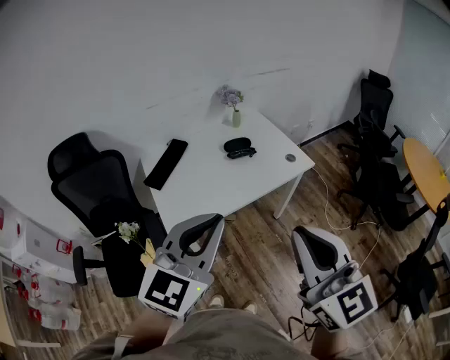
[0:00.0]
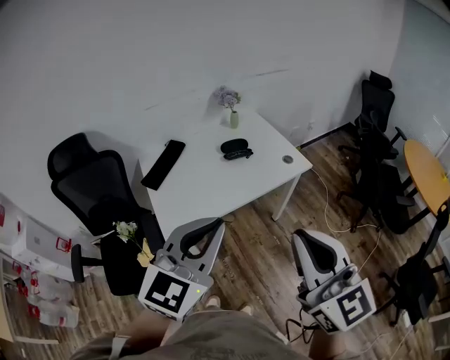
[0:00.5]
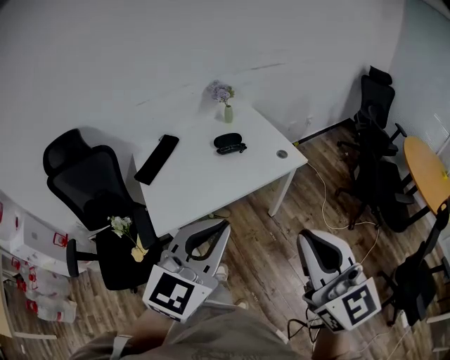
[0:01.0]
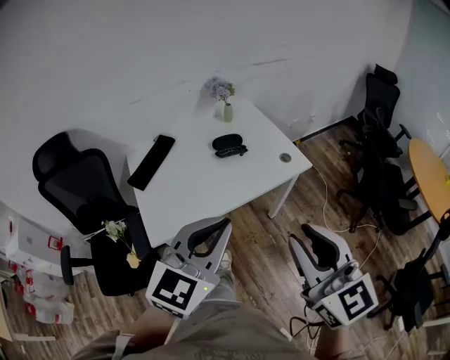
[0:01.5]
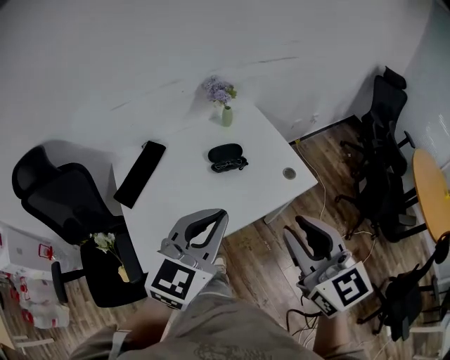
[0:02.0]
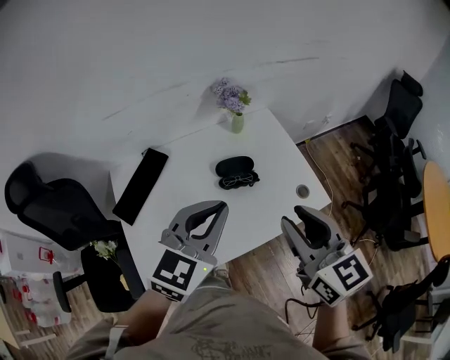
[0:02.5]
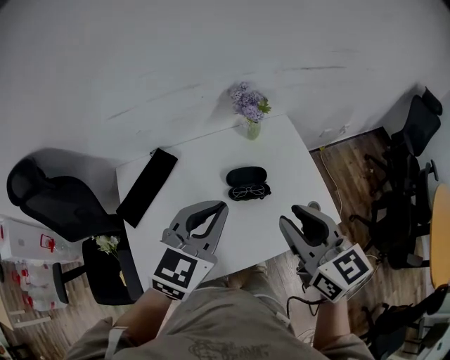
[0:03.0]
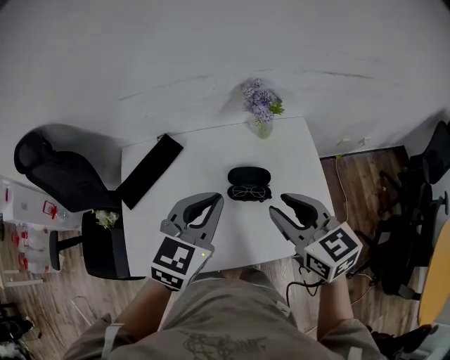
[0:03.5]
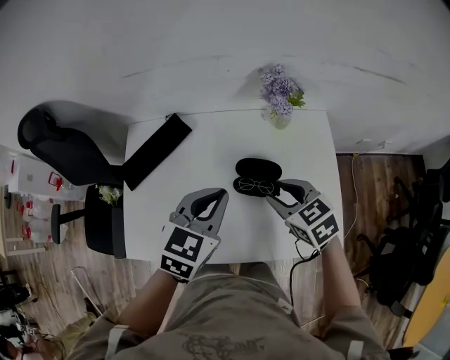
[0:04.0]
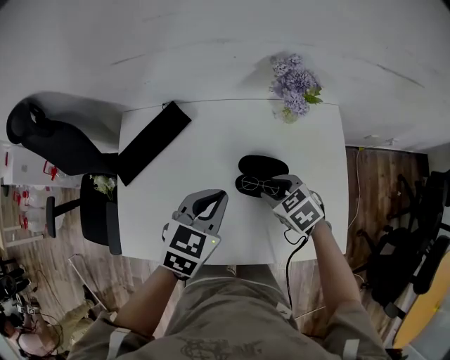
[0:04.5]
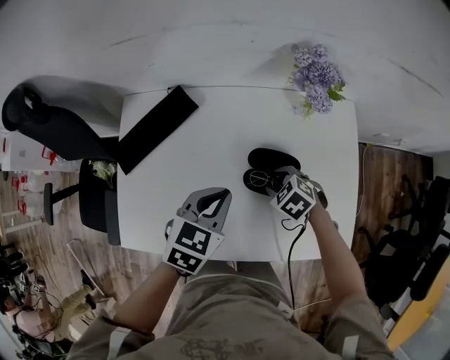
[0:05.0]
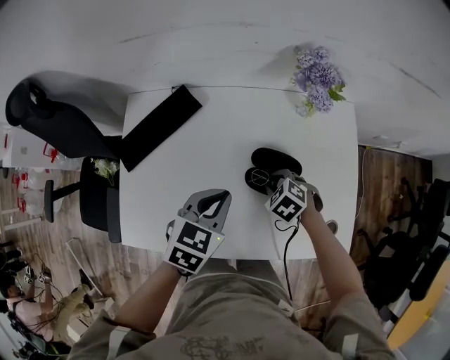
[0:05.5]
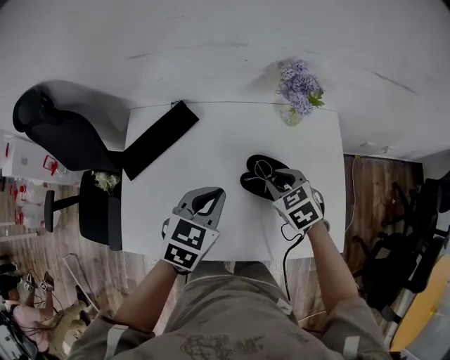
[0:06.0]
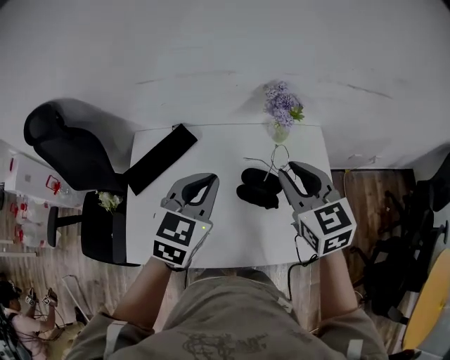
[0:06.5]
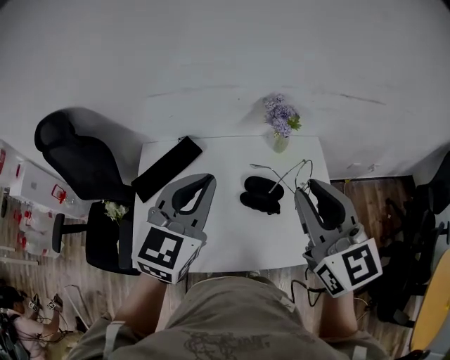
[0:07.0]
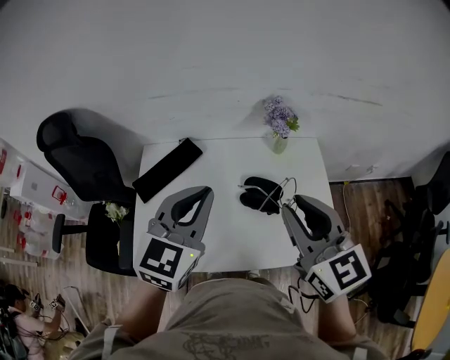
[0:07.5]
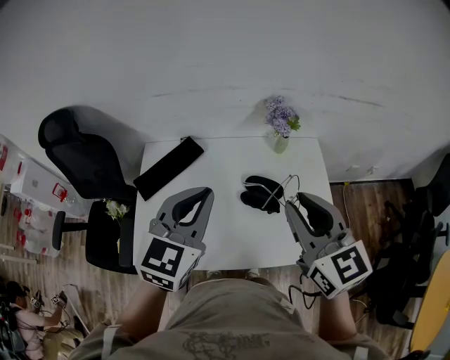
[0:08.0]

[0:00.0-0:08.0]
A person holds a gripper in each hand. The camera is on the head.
0:00.0 to 0:02.0: Both grippers travel together forward, some 25 cm. The right gripper opens.
0:02.0 to 0:04.0: The right gripper ends up about 40 cm from where it was, and points its fingers about 30 degrees further downward. Meanwhile the left gripper shifts by some 30 cm, and swivels some 30 degrees.
0:04.0 to 0:06.0: The two grippers go about 5 cm downward.
0:06.0 to 0:08.0: The left gripper shifts roughly 20 cm upward, and changes its angle by about 30 degrees, while the right gripper goes approximately 30 cm upward, and tips its fingers upward by approximately 40 degrees.

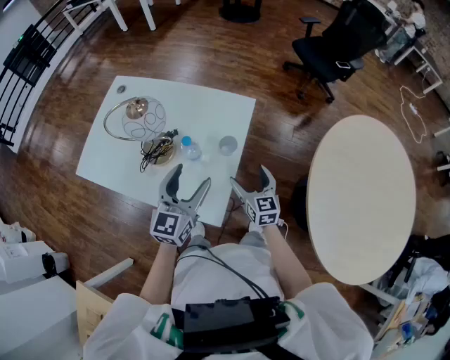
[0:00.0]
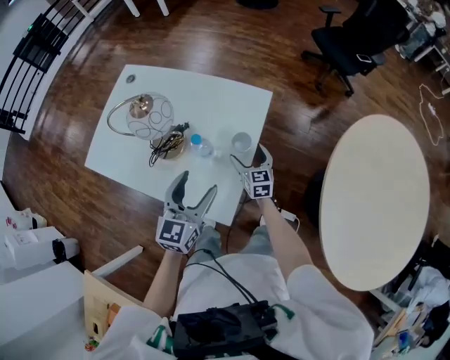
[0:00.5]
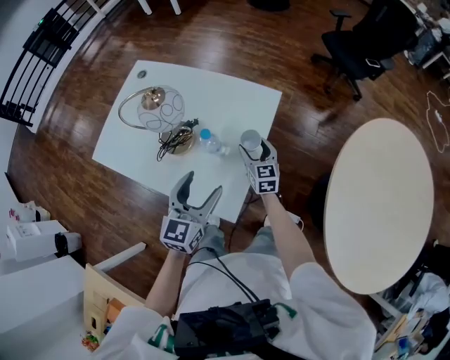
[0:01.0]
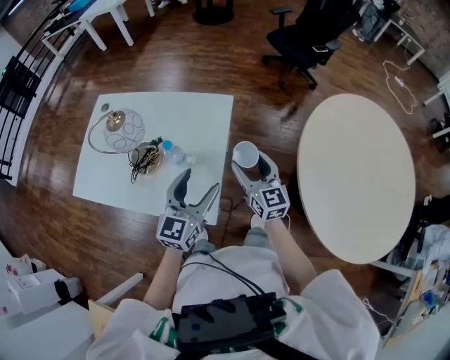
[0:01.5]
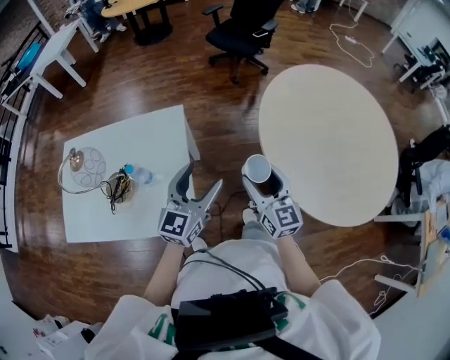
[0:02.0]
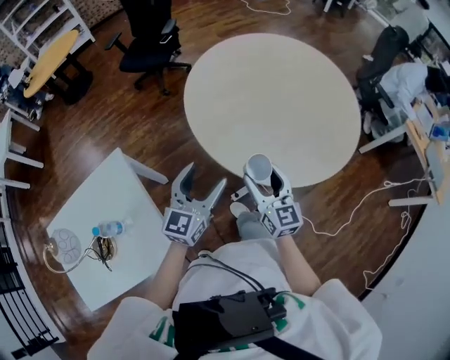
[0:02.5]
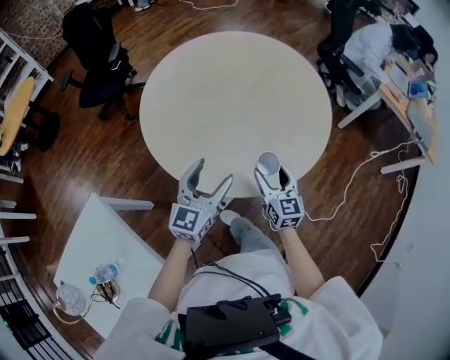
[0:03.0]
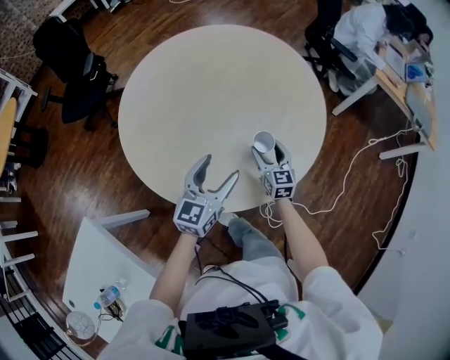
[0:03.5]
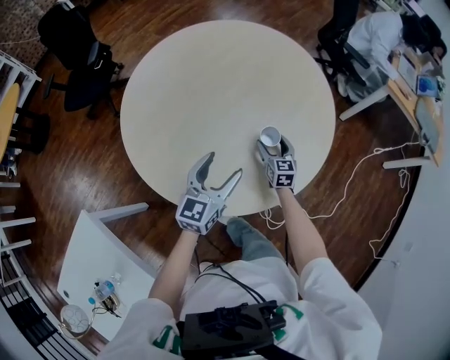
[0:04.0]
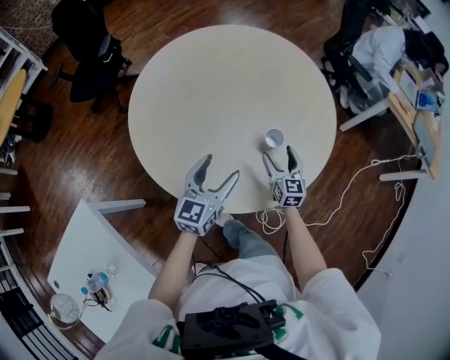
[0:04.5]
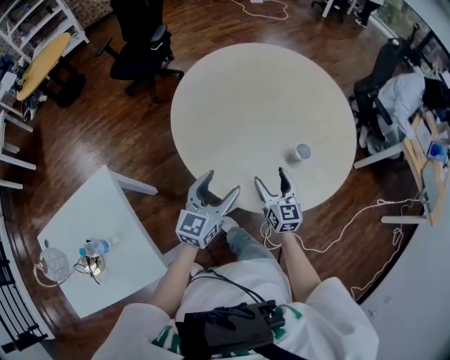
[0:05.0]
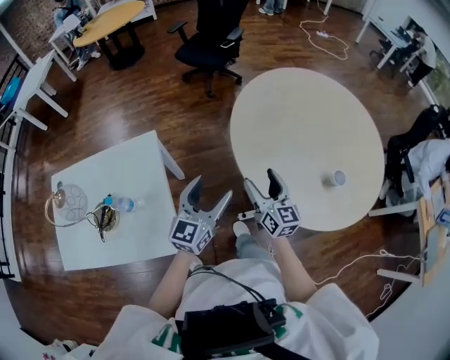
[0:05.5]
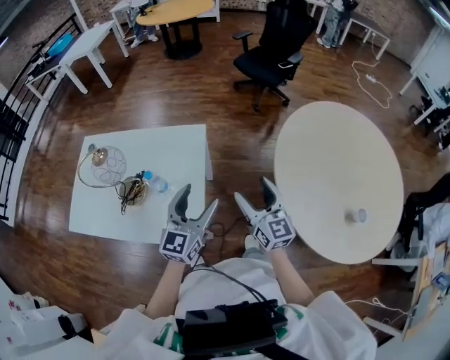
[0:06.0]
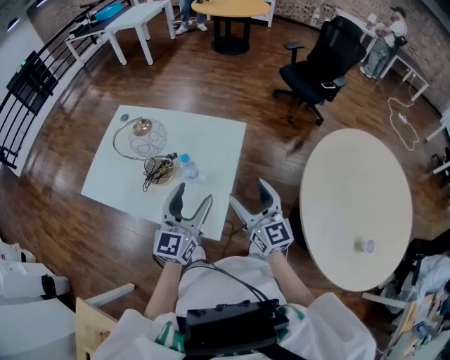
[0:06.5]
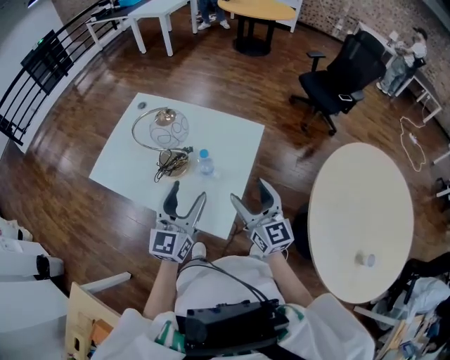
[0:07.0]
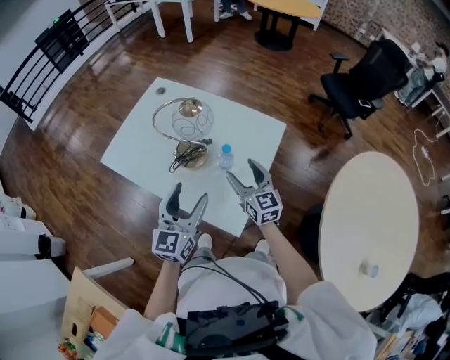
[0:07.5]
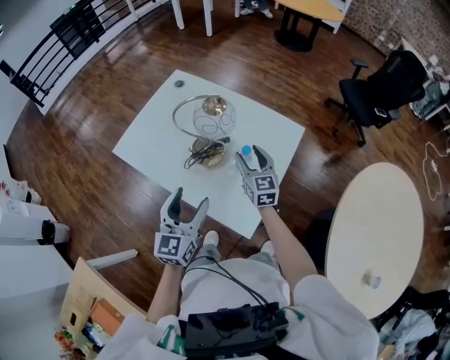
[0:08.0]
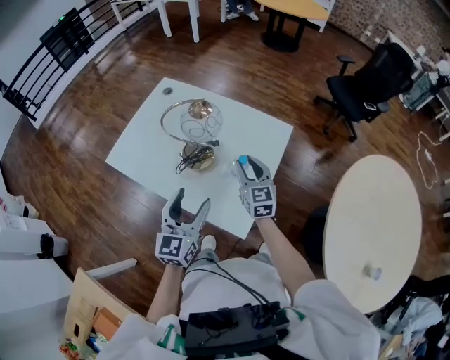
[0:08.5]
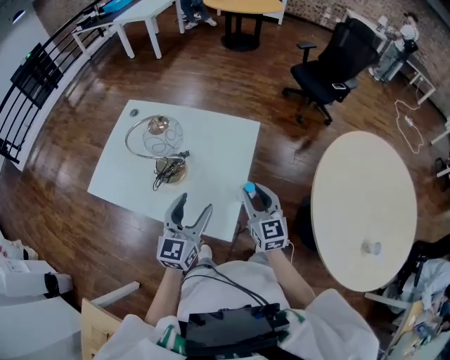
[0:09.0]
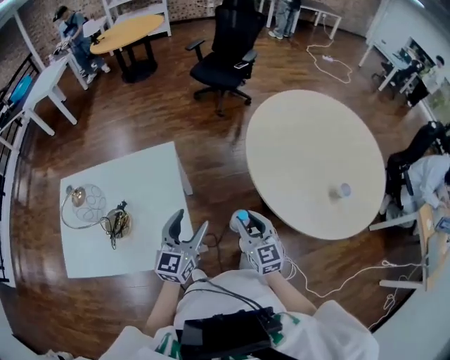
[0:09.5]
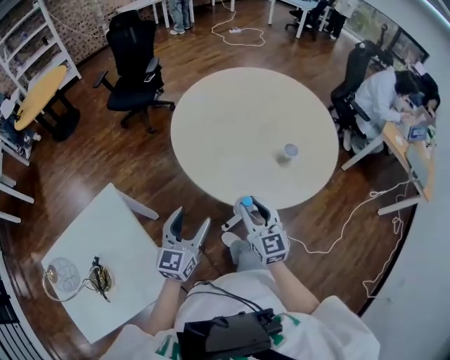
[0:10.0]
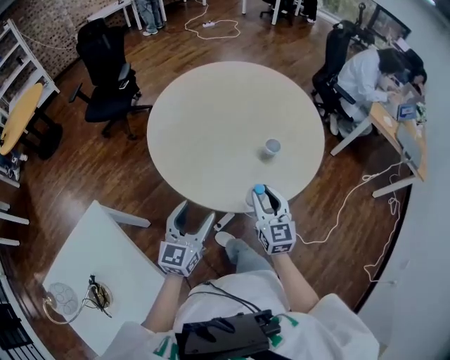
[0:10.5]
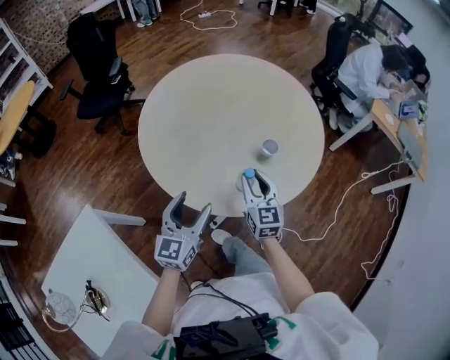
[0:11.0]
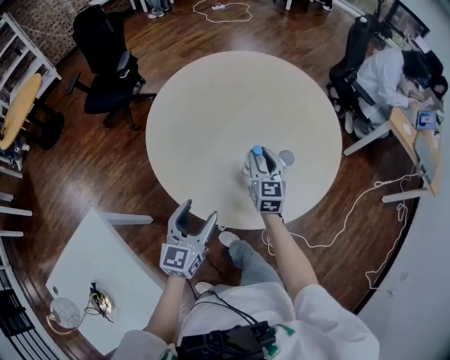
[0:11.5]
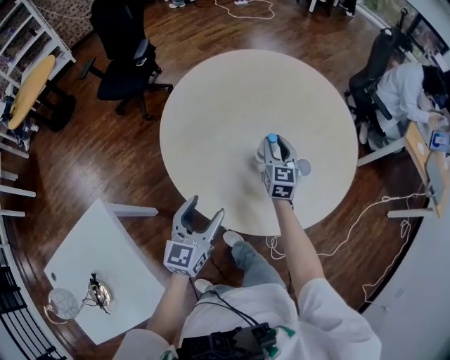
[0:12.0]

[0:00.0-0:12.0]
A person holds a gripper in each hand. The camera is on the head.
0:00.0 to 0:02.0: The left gripper ends up approximately 20 cm from where it was, and rotates approximately 30 degrees, while the right gripper changes place by some 25 cm, and turns by approximately 30 degrees.
0:02.0 to 0:04.0: The two grippers travel together, roughly 50 cm. The left gripper rotates approximately 50 degrees; the right gripper changes its angle by about 60 degrees.
0:04.0 to 0:06.0: Both grippers are carried some 60 cm. The right gripper changes its angle by approximately 70 degrees; the left gripper rotates roughly 60 degrees.
0:06.0 to 0:08.0: The right gripper changes place by approximately 40 cm, and rotates approximately 30 degrees; the left gripper changes place by about 30 cm, and turns by roughly 40 degrees.
0:08.0 to 0:10.0: The two grippers travel together, some 50 cm. The right gripper turns by approximately 70 degrees. The left gripper swivels some 80 degrees.
0:10.0 to 0:12.0: The right gripper goes about 35 cm forward; the left gripper goes approximately 20 cm forward.

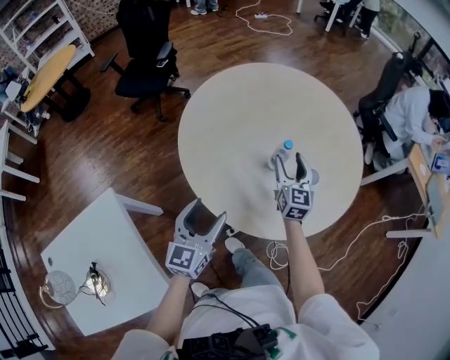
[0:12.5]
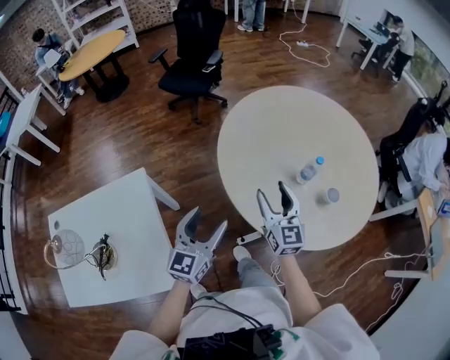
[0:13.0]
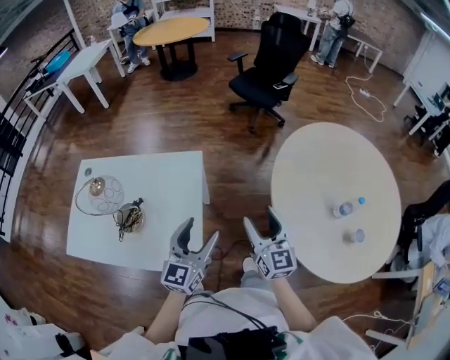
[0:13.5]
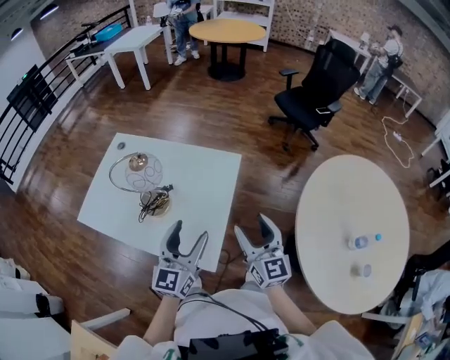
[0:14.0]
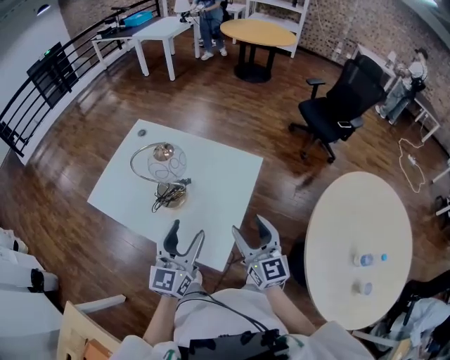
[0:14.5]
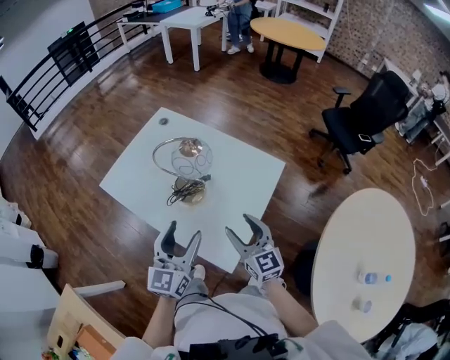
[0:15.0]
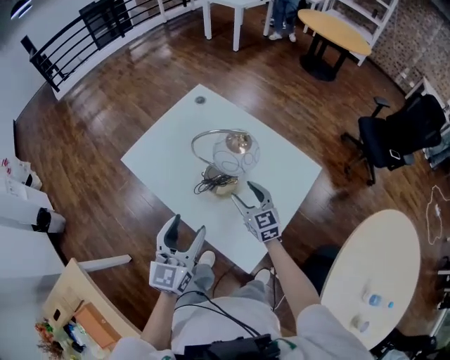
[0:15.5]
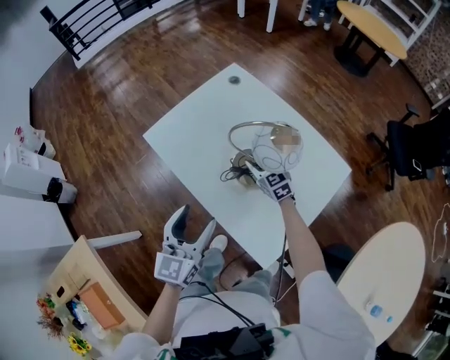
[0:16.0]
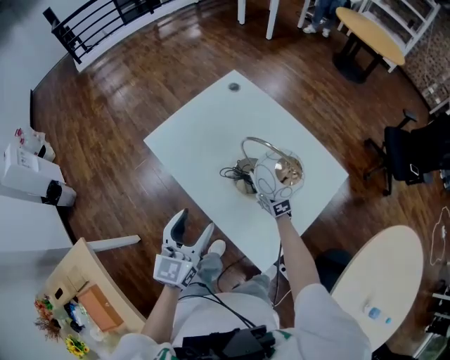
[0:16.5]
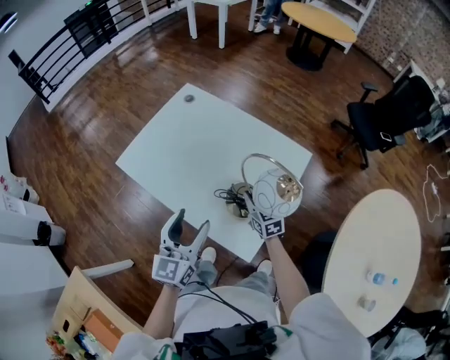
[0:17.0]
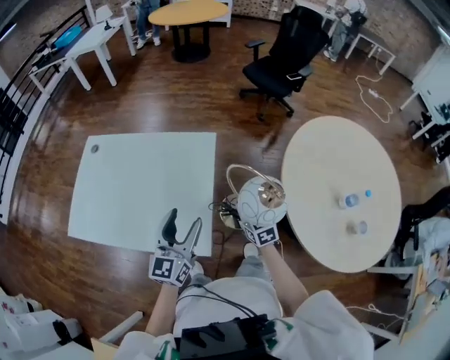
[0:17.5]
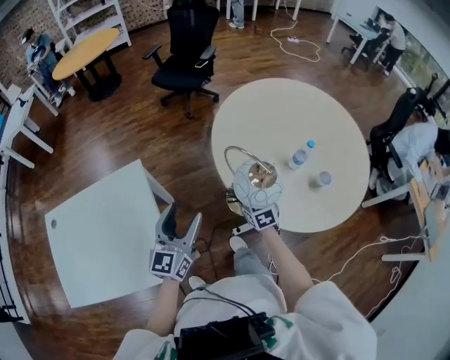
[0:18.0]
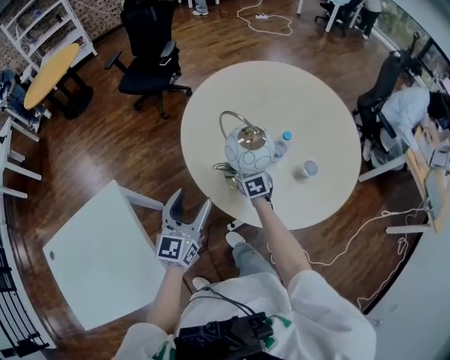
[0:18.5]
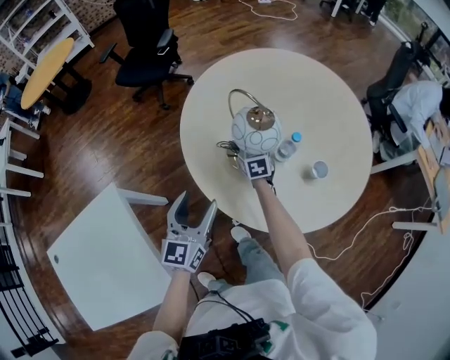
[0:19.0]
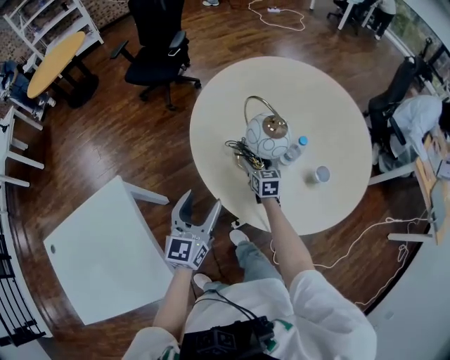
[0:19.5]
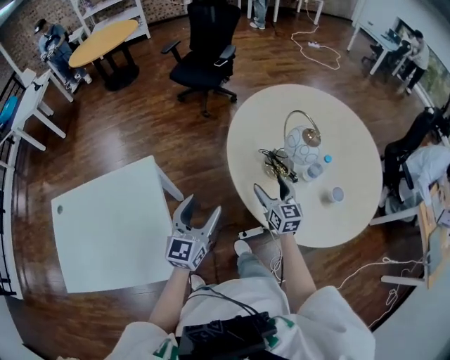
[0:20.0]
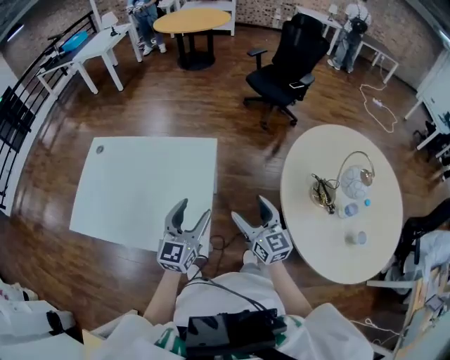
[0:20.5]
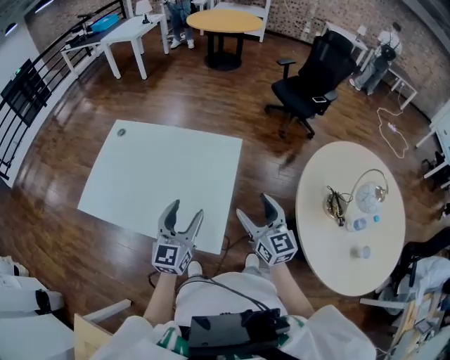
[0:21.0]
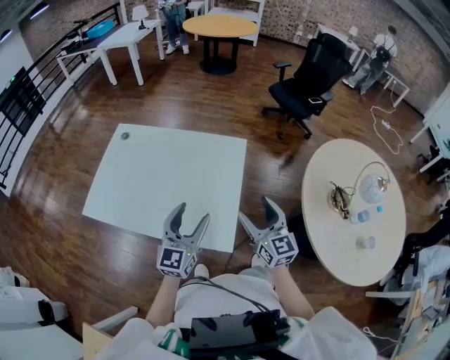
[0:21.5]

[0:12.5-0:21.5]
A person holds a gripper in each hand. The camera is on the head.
0:12.5 to 0:14.5: Both grippers are carried approximately 60 cm. The left gripper turns by approximately 70 degrees. Meanwhile the right gripper turns by about 80 degrees.
0:14.5 to 0:17.0: The left gripper ends up approximately 15 cm from where it was, while the right gripper travels downward by roughly 20 cm, turns by some 30 degrees, and closes.
0:17.0 to 0:19.5: The pair of grippers is taken roughly 70 cm. The right gripper turns by approximately 80 degrees, and opens up; the left gripper turns by roughly 70 degrees.
0:19.5 to 0:21.5: The two grippers travel together, approximately 50 cm. The left gripper rotates roughly 40 degrees; the right gripper swivels approximately 60 degrees.
